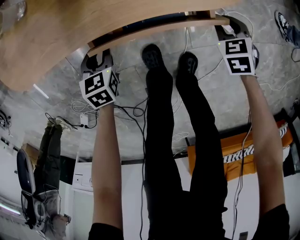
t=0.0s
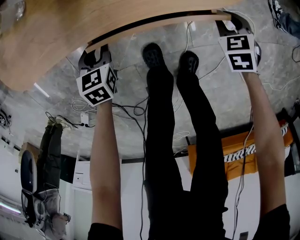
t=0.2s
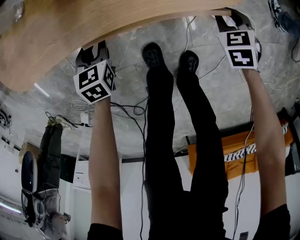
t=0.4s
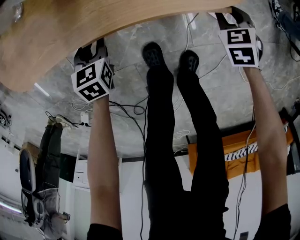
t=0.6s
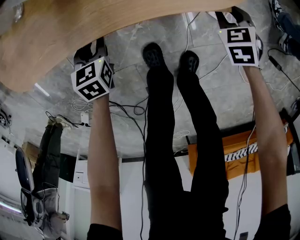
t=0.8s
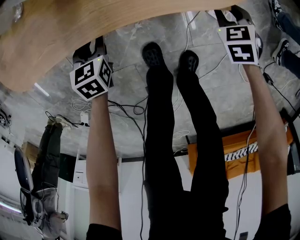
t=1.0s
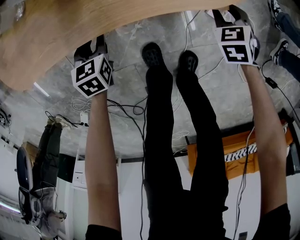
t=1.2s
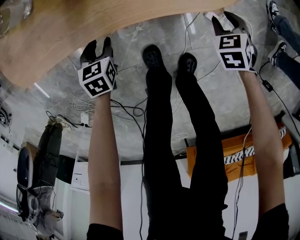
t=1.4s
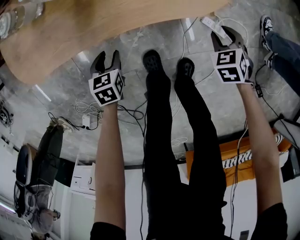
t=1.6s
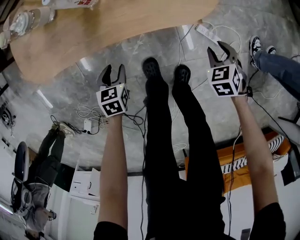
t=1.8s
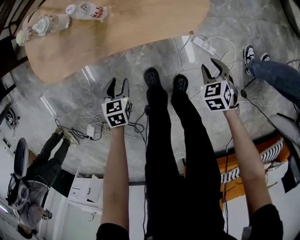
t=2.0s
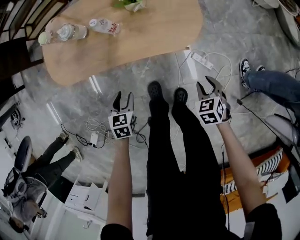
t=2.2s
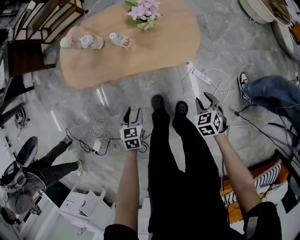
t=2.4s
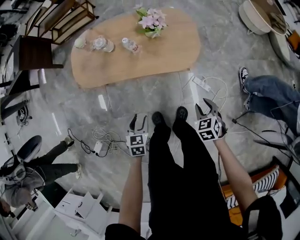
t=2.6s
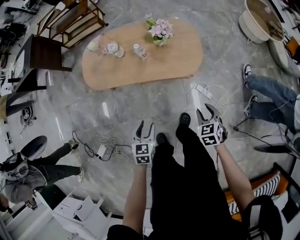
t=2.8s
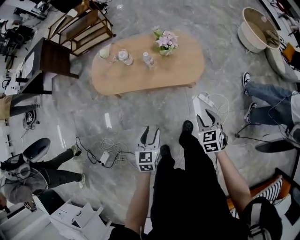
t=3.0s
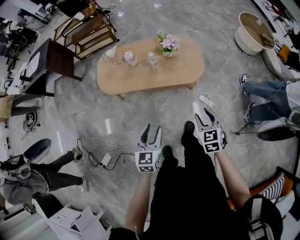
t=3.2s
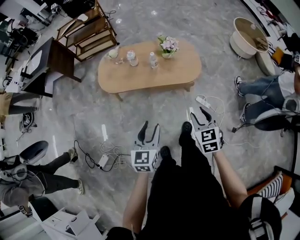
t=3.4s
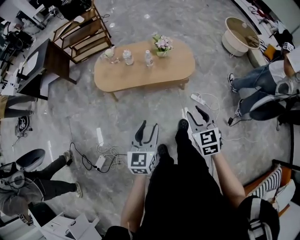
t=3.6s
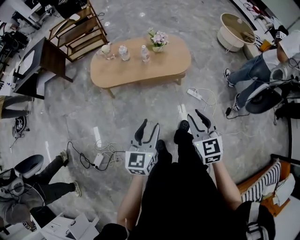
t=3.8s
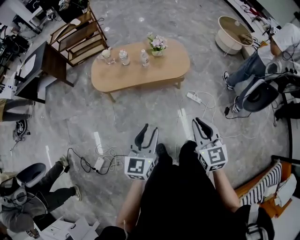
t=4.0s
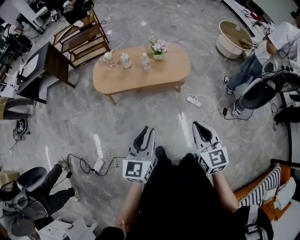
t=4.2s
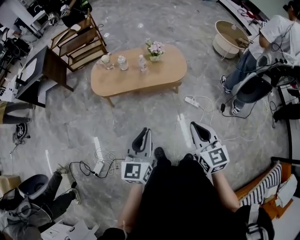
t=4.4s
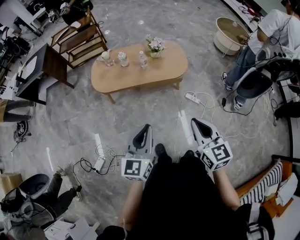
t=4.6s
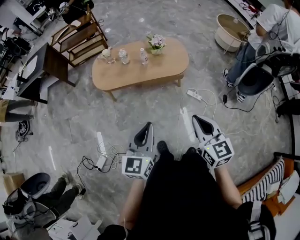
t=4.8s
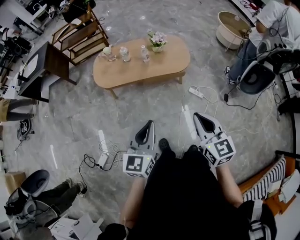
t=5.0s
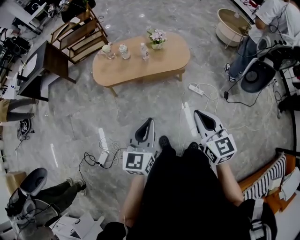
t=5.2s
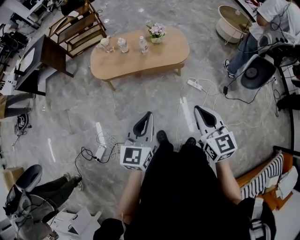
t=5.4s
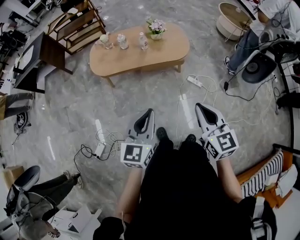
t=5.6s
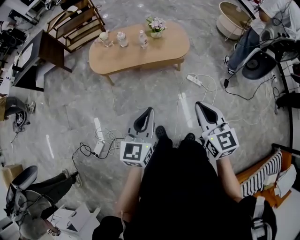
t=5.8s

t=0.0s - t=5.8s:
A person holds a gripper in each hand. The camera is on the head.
t=0.0s - t=1.4s: There are only small adjustments of the grippers.
t=1.4s - t=2.8s: Both grippers move upward and backward, about 50 cm.
t=2.8s - t=4.4s: The right gripper travels upward, backward and to the left by approximately 50 cm, points its fingers approximately 30 degrees further upward, and closes; the left gripper shifts approximately 40 cm upward and backward, tilts its fingers about 40 degrees upward, and closes up.
t=4.4s - t=5.8s: There are only small adjustments of the grippers.

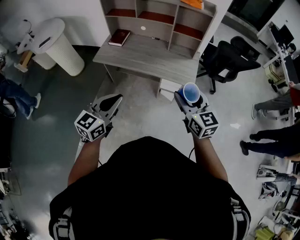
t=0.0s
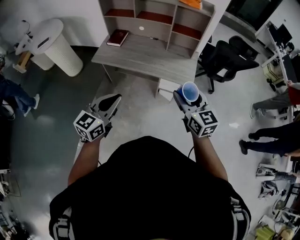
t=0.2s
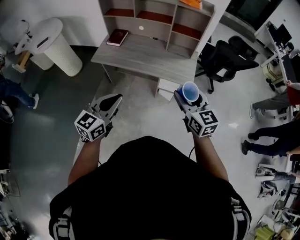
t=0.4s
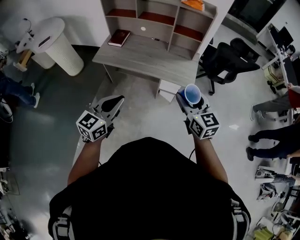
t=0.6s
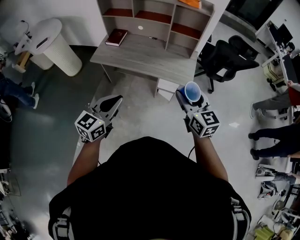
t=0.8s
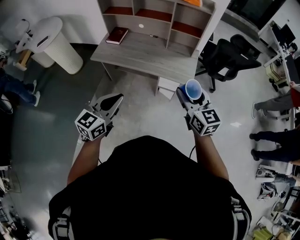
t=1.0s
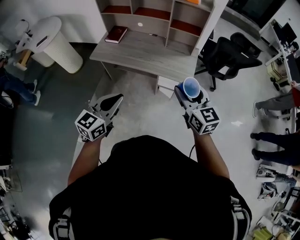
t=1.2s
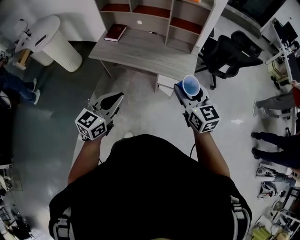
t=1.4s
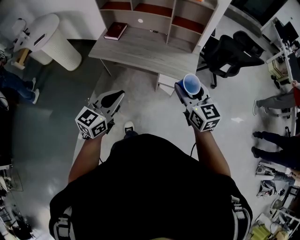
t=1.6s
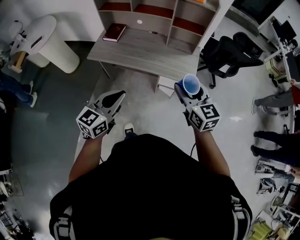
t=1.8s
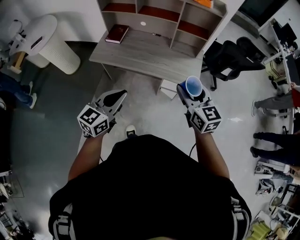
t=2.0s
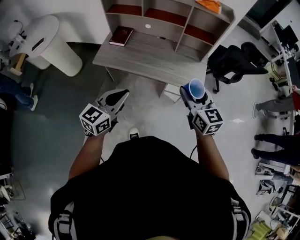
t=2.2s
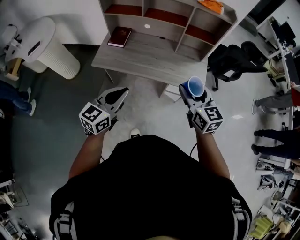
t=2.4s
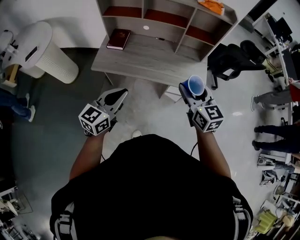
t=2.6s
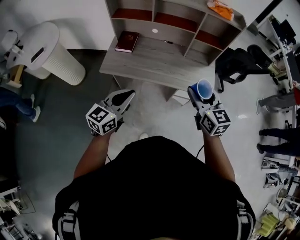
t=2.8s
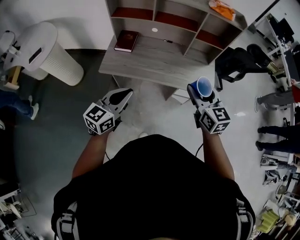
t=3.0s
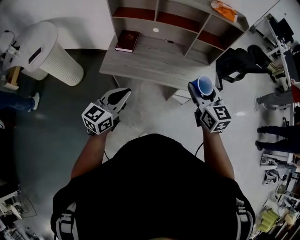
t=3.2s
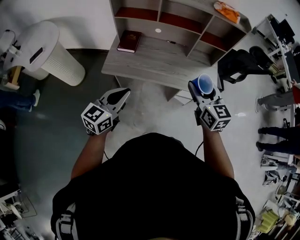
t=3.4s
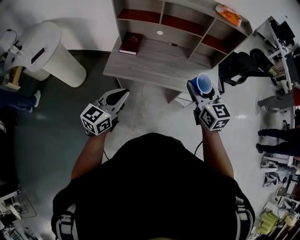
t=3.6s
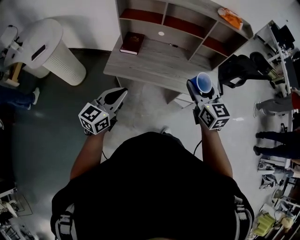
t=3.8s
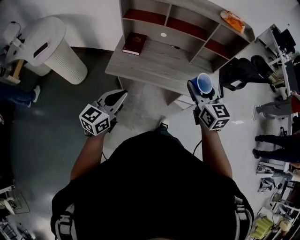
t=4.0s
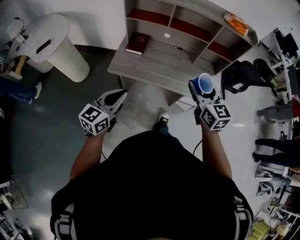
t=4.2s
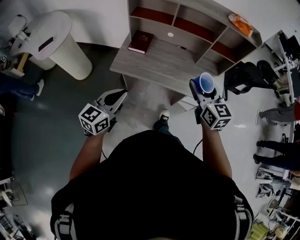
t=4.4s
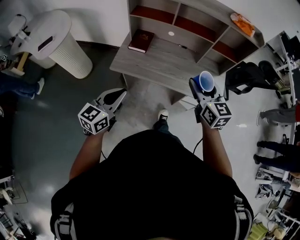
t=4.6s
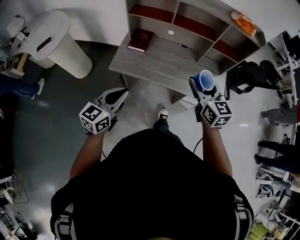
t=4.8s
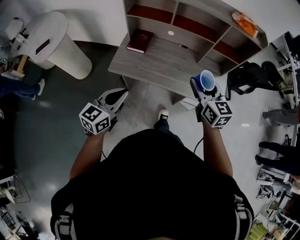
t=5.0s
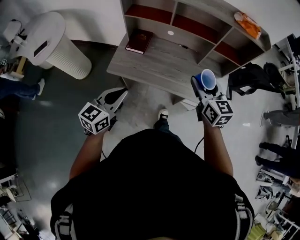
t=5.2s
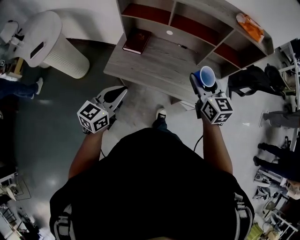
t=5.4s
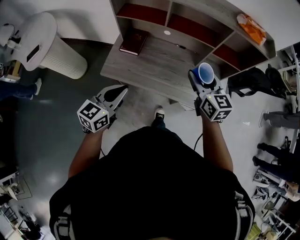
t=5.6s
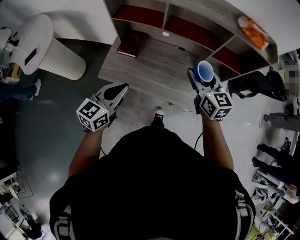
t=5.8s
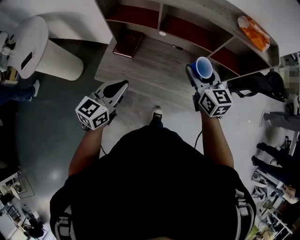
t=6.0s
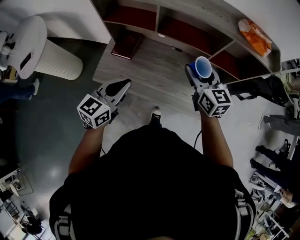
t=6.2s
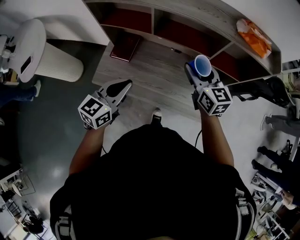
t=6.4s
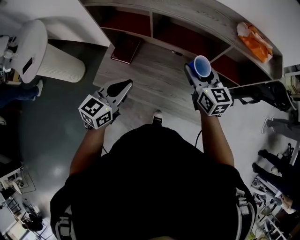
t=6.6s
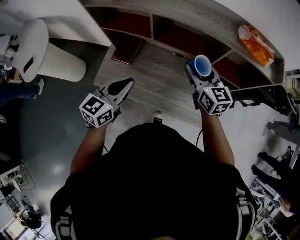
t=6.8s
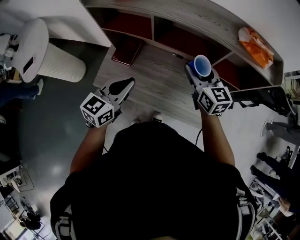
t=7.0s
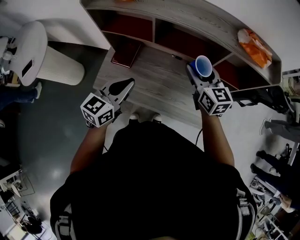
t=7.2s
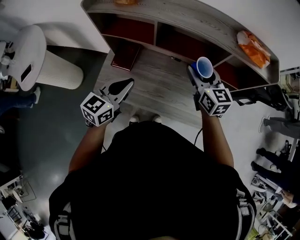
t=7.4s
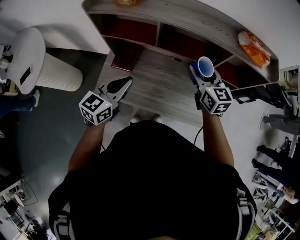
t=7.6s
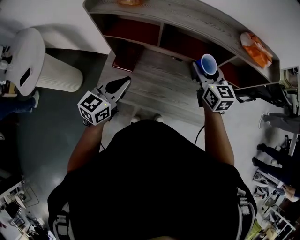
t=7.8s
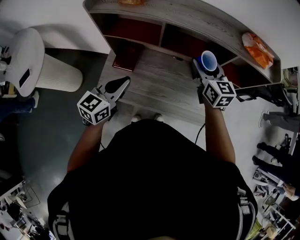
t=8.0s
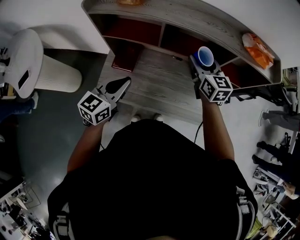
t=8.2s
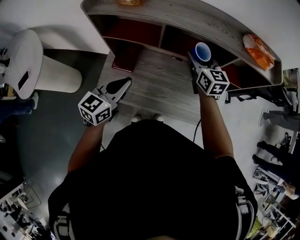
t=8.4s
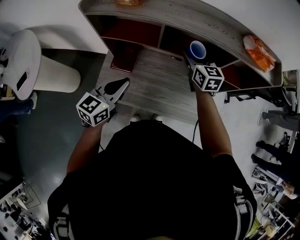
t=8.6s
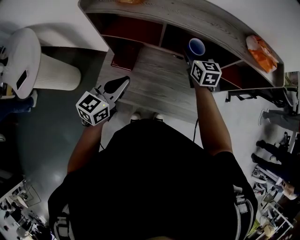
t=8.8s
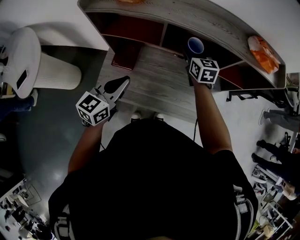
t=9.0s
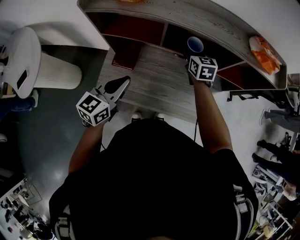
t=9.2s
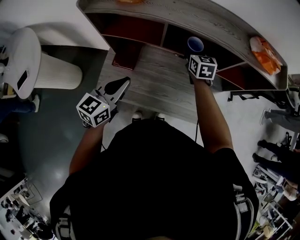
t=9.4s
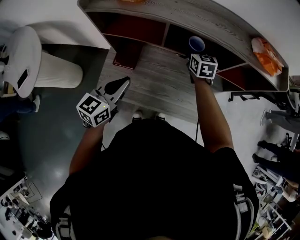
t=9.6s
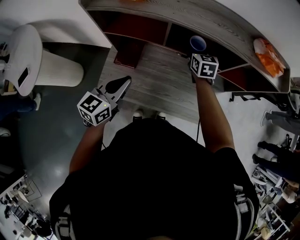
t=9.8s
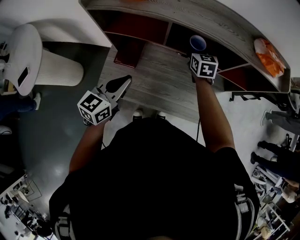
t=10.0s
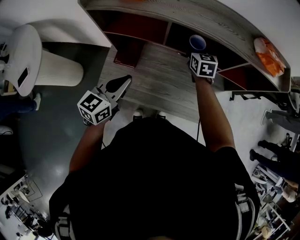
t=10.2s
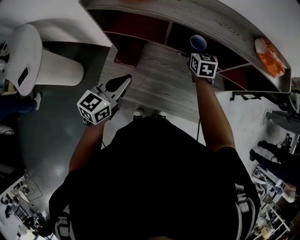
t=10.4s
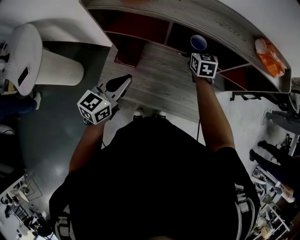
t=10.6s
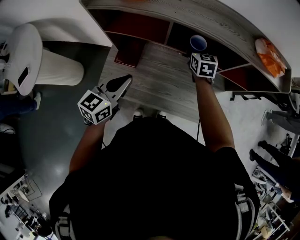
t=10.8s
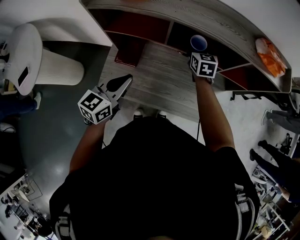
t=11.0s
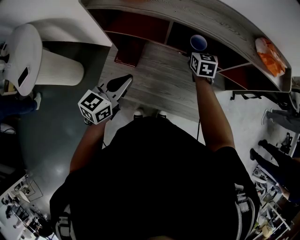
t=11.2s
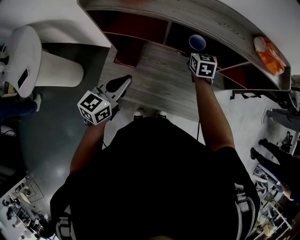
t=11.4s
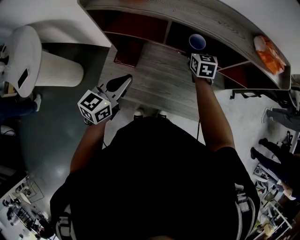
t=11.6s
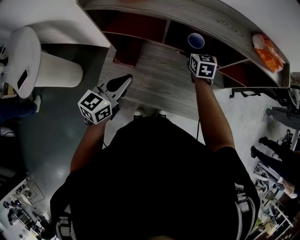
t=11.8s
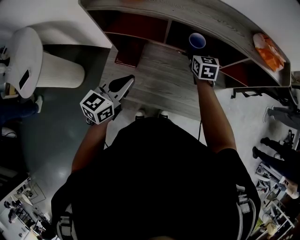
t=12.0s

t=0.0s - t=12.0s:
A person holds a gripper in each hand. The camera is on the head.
t=0.0s - t=1.6s: The left gripper ends up about 5 cm from where it was. Meanwhile the right gripper goes some 5 cm forward.
t=1.6s - t=3.0s: The two grippers go approximately 25 cm to the left and forward.
t=3.0s - t=4.4s: The grippers both shift to the left by about 10 cm.
t=4.4s - t=6.0s: The grippers both shift forward by about 25 cm.
t=6.0s - t=7.6s: The grippers both shift forward by about 10 cm.
t=7.6s - t=9.0s: The right gripper shifts some 15 cm forward, downward and to the left.
t=9.0s - t=12.0s: The grippers stay close to where they were, moving slightly.

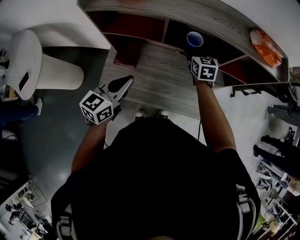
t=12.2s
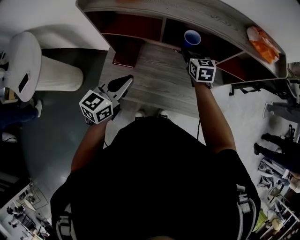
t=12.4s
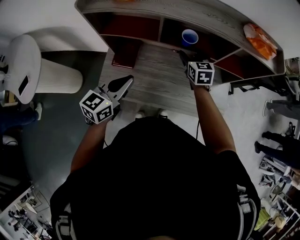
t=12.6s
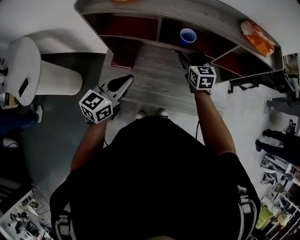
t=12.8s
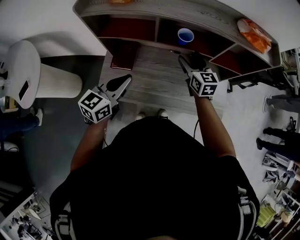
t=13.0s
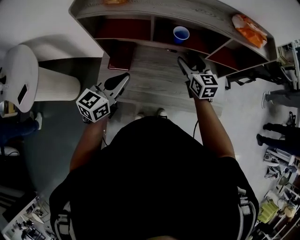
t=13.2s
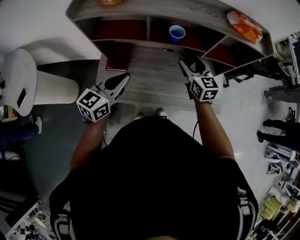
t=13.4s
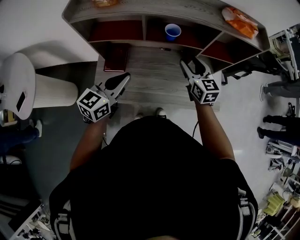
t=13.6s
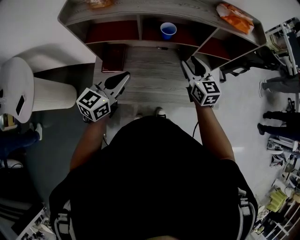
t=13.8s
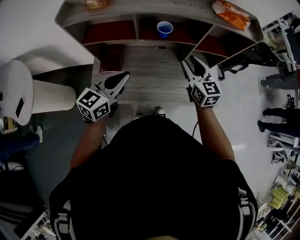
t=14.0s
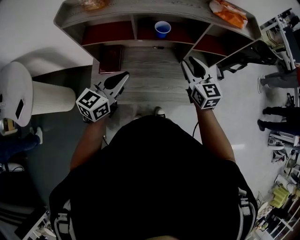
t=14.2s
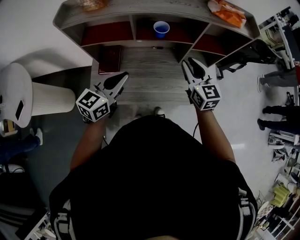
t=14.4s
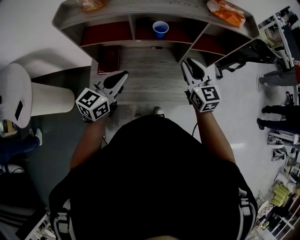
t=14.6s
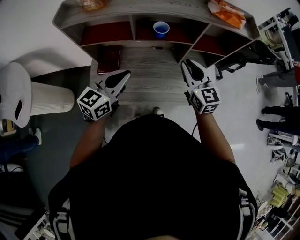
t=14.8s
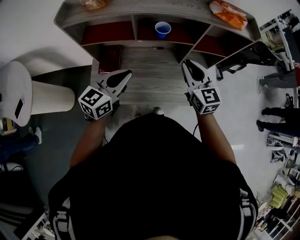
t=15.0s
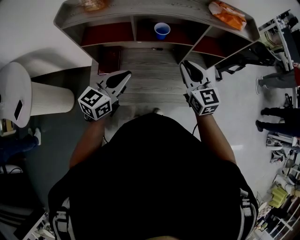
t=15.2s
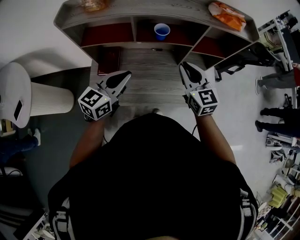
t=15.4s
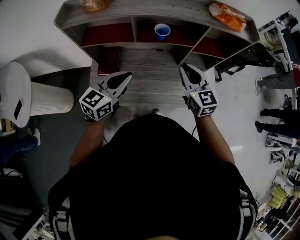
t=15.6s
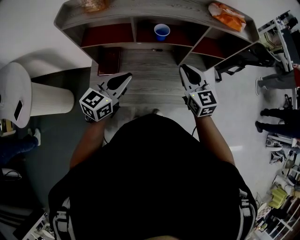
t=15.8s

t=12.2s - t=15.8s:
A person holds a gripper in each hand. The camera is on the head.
t=12.2s - t=14.0s: The left gripper travels to the right by roughly 5 cm; the right gripper heads backward, to the right and upward, covering roughly 20 cm, and closes.
t=14.0s - t=15.8s: The right gripper closes.

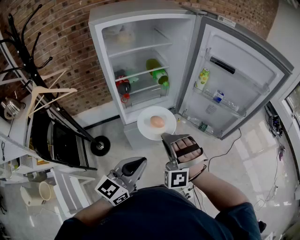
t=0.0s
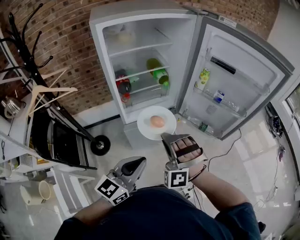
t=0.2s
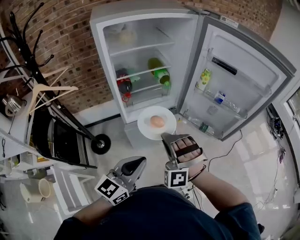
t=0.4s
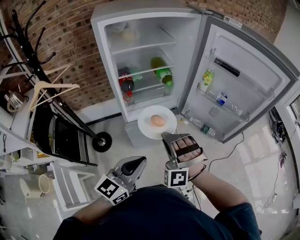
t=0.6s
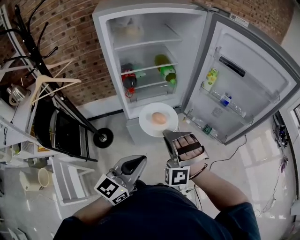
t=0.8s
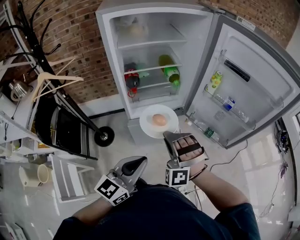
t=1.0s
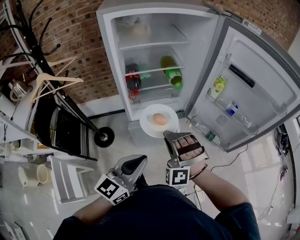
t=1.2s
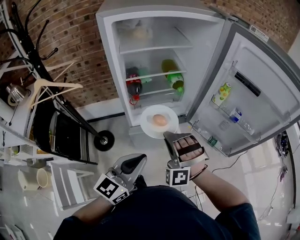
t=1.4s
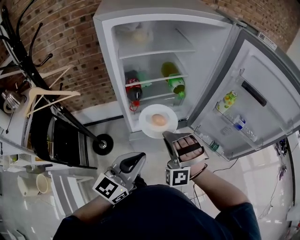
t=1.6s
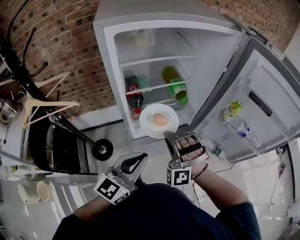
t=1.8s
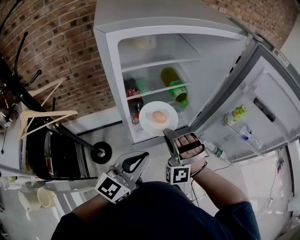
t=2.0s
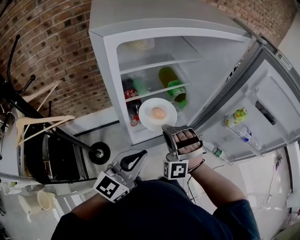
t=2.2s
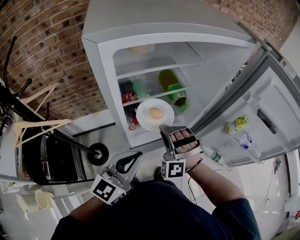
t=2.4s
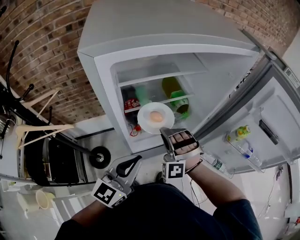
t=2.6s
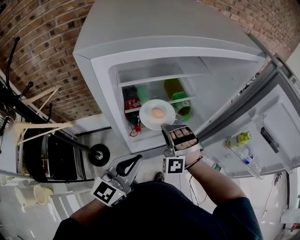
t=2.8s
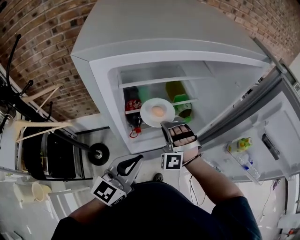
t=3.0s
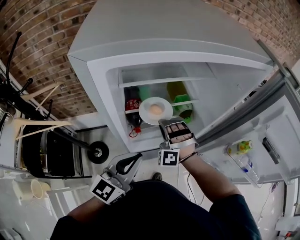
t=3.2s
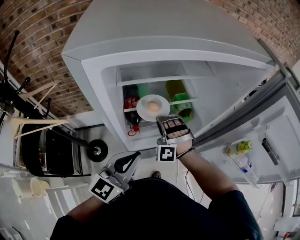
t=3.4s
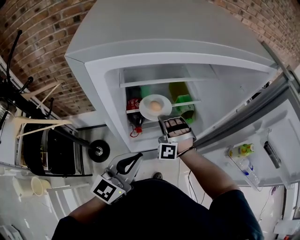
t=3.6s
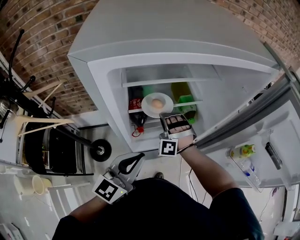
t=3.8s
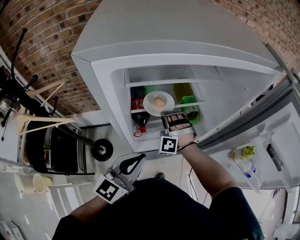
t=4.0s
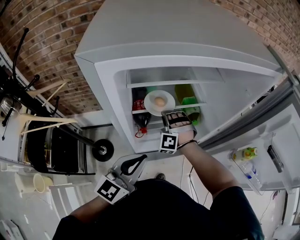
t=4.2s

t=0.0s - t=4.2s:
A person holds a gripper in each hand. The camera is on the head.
t=0.0s - t=1.4s: The left gripper changes place by some 10 cm.
t=1.4s - t=2.8s: The left gripper changes place by approximately 25 cm.
